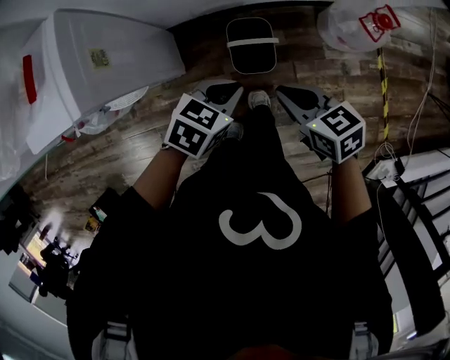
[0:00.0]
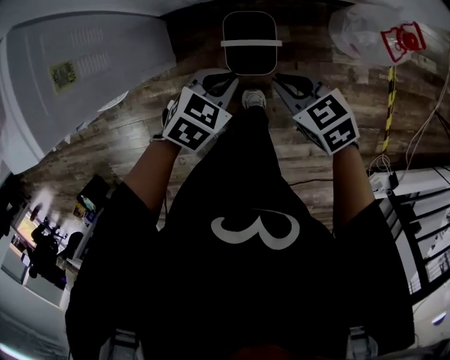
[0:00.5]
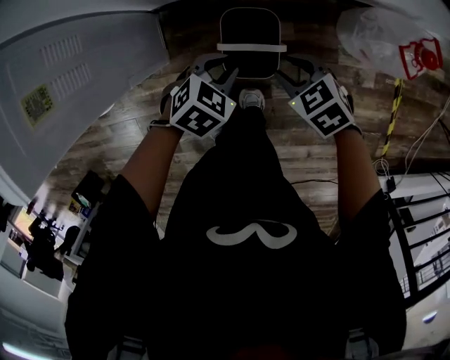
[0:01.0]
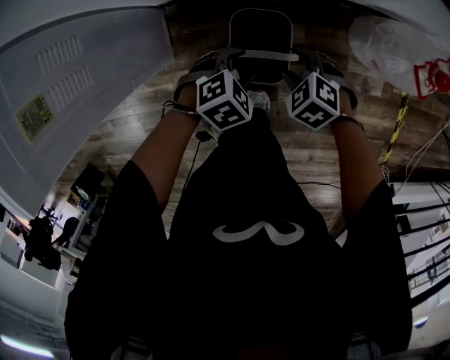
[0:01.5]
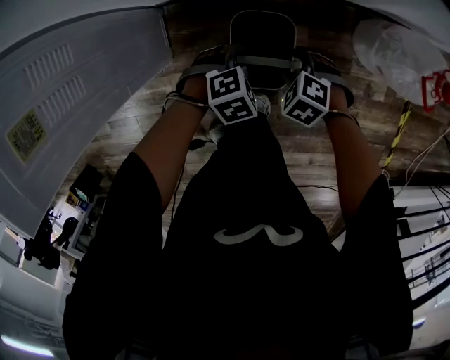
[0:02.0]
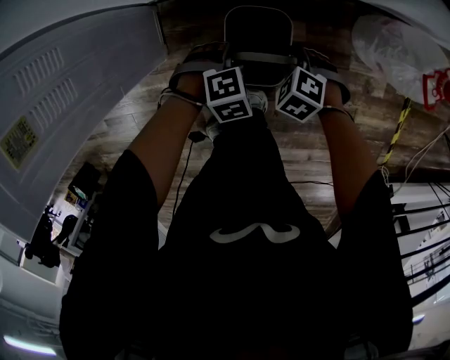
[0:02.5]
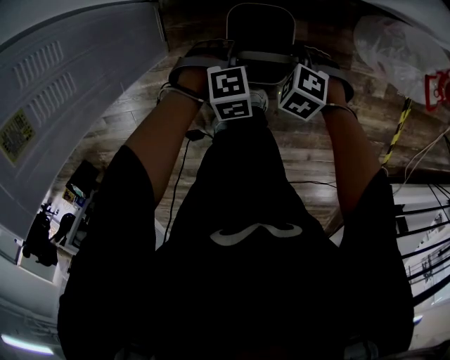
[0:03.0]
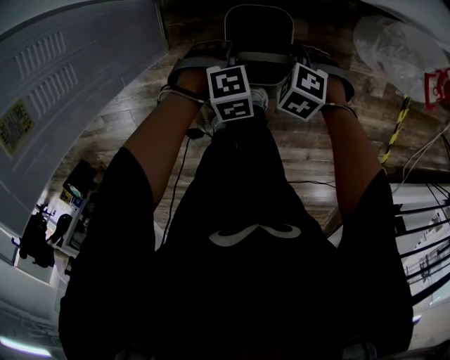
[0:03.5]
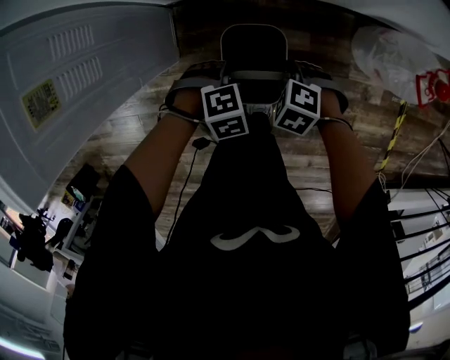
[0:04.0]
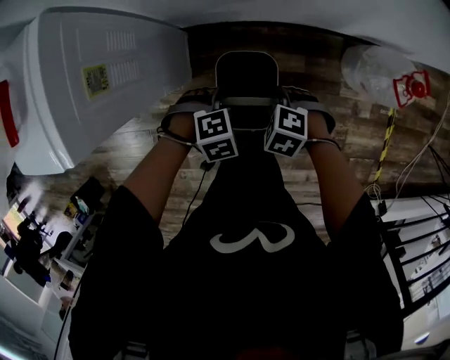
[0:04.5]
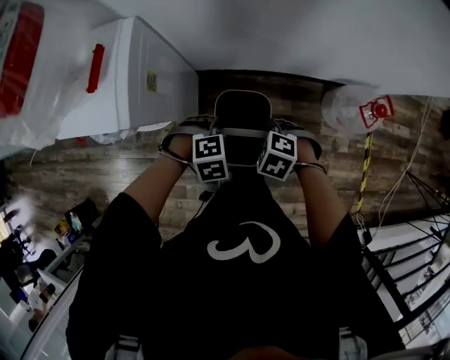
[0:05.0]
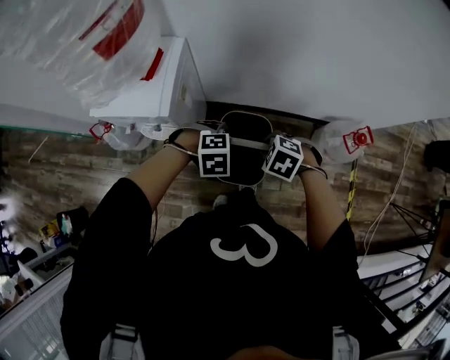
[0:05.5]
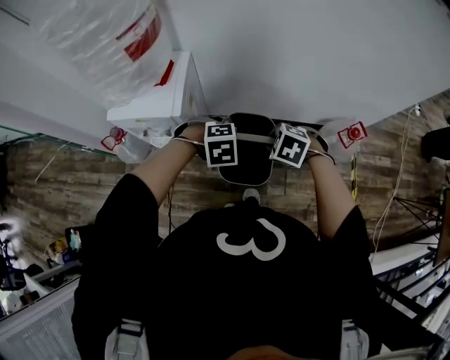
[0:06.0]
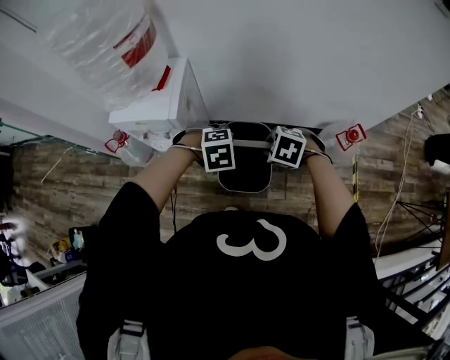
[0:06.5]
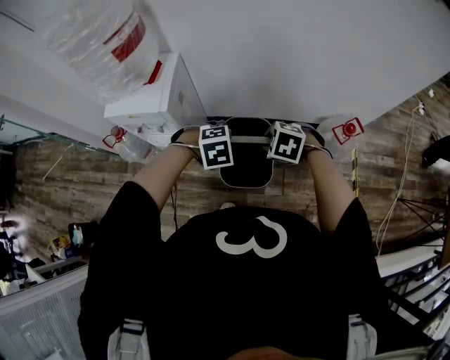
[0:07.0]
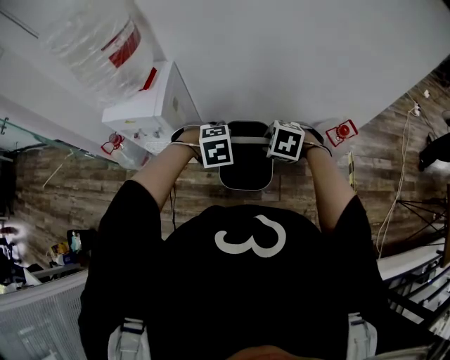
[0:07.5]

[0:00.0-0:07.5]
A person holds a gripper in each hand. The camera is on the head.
0:00.0 to 0:02.0: The two grippers go about 35 cm downward. The left gripper swivels approximately 40 degrees, and opens up. Meanwhile the right gripper angles its fingers downward, by about 40 degrees, and opens.
0:02.0 to 0:04.0: The right gripper changes place by roughly 10 cm, and closes. The left gripper moves about 10 cm, and closes up.
0:04.0 to 0:05.5: Both grippers travel together upward, about 40 cm.
0:05.5 to 0:07.5: The right gripper is displaced upward, backward and to the right by some 15 cm; the left gripper is displaced backward, upward and to the right by about 15 cm.

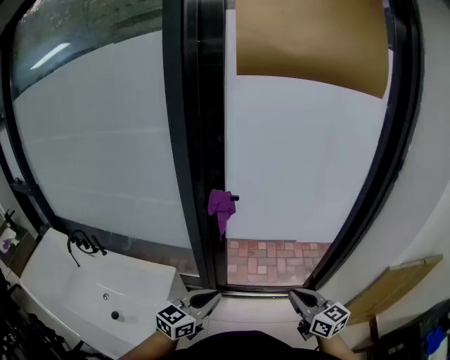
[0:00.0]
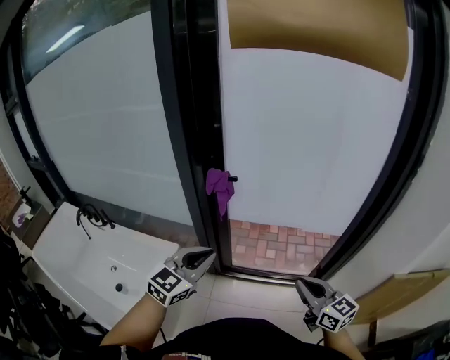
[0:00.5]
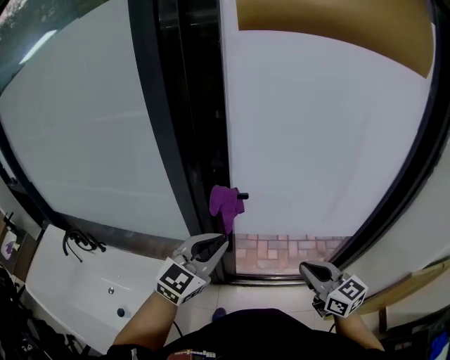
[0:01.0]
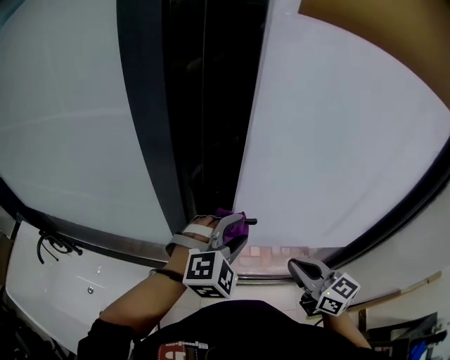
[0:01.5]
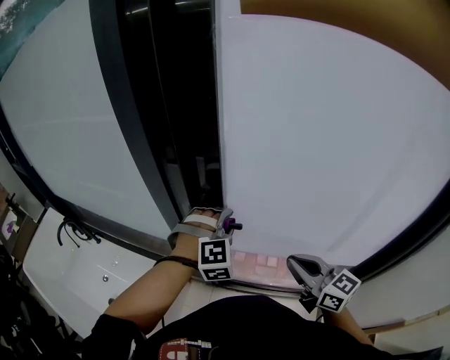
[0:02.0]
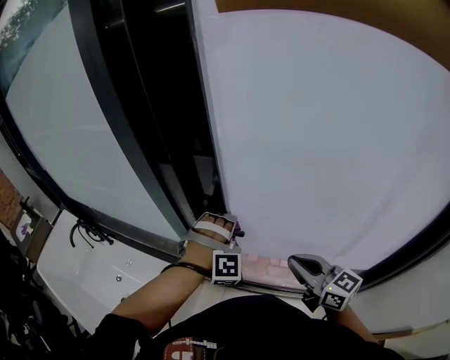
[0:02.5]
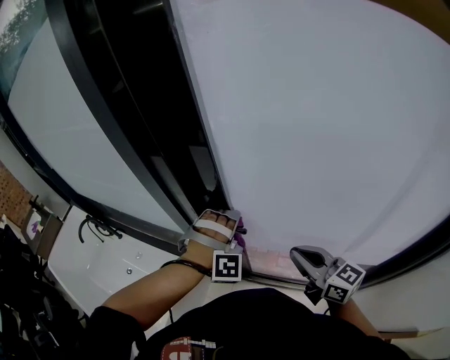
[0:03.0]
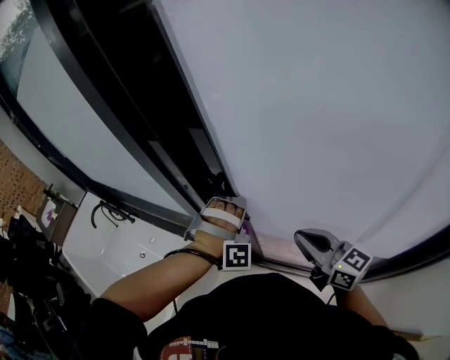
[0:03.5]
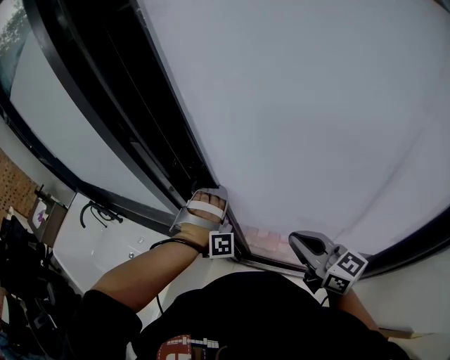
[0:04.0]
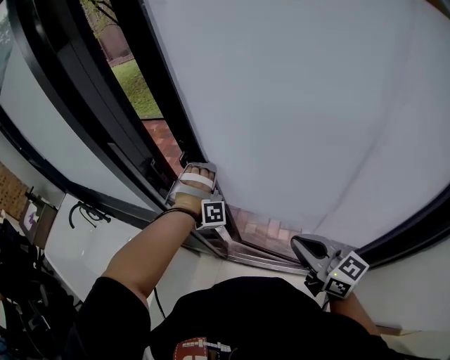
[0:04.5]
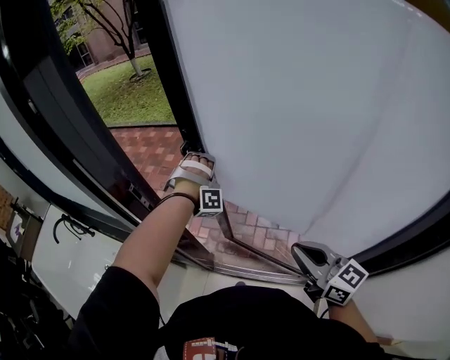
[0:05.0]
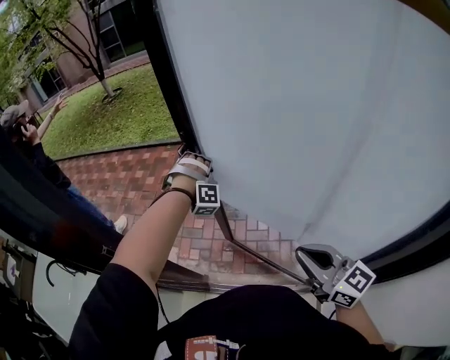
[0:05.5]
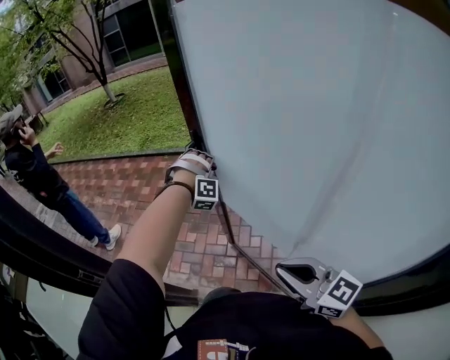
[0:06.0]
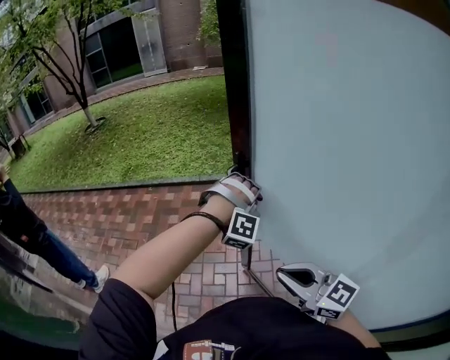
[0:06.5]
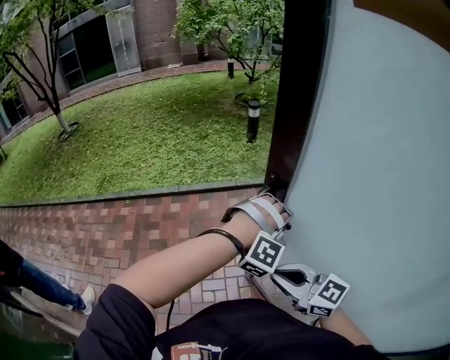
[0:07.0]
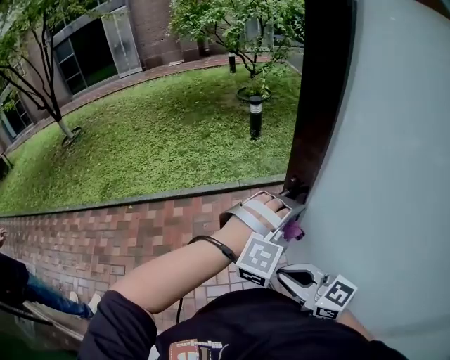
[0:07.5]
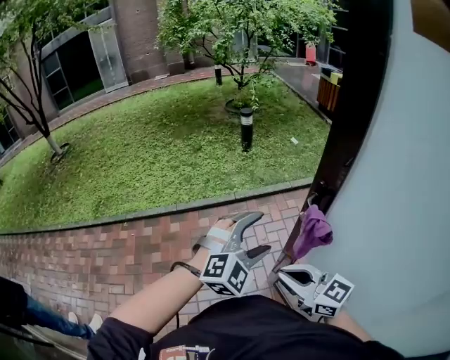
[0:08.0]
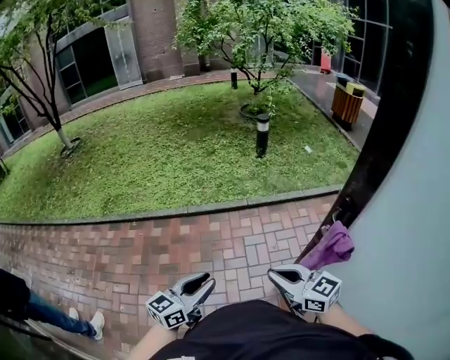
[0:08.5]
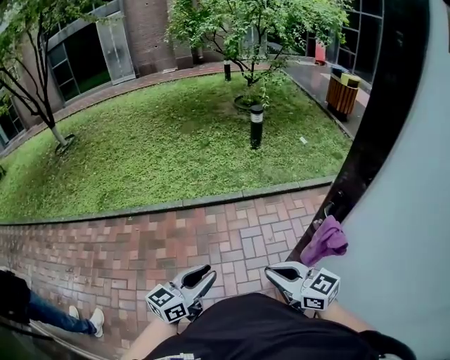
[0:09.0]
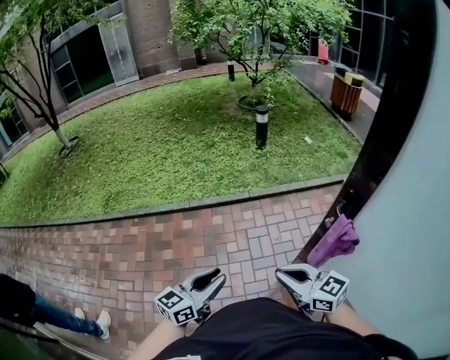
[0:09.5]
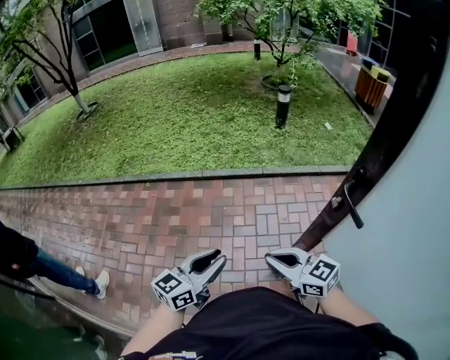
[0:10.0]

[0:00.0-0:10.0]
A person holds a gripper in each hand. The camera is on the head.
0:00.0 to 0:02.0: The left gripper goes upward and returns, approximately 10 cm each way, changes its angle by some 90 degrees, and opens its fingers, while the right gripper shifts by some 35 cm.
0:02.0 to 0:04.0: The left gripper is displaced downward by about 5 cm, and swivels some 50 degrees. The right gripper changes place by some 5 cm.
0:04.0 to 0:06.0: The left gripper shifts about 50 cm to the right and forward. The right gripper is displaced to the right by roughly 20 cm.
0:06.0 to 0:08.0: The left gripper ends up some 25 cm from where it was, changes its angle by approximately 70 degrees, and opens, while the right gripper changes place by about 50 cm.
0:08.0 to 0:10.0: The left gripper heads to the left, covering roughly 20 cm, twists some 70 degrees counterclockwise, seen from behind, and closes its fingers, while the right gripper travels to the left and downward by some 10 cm.

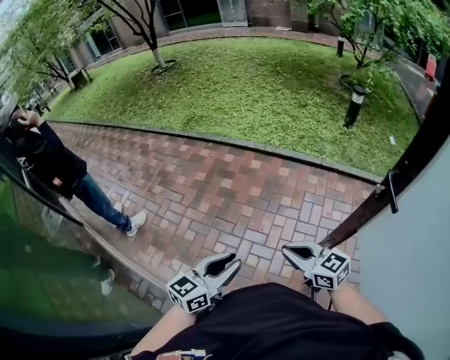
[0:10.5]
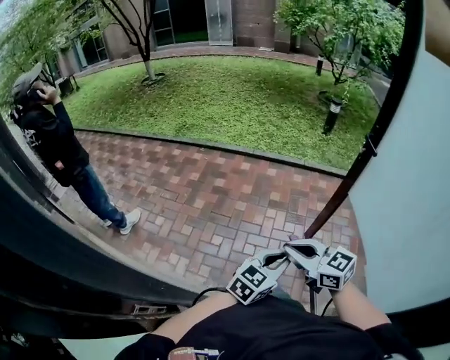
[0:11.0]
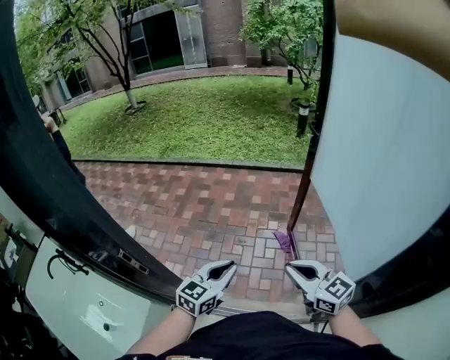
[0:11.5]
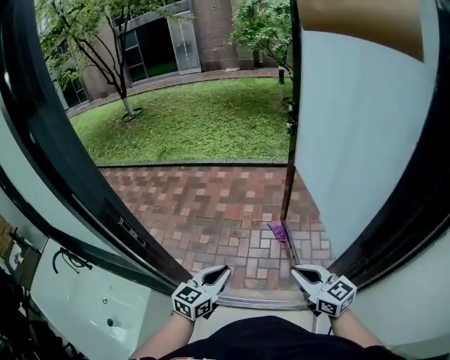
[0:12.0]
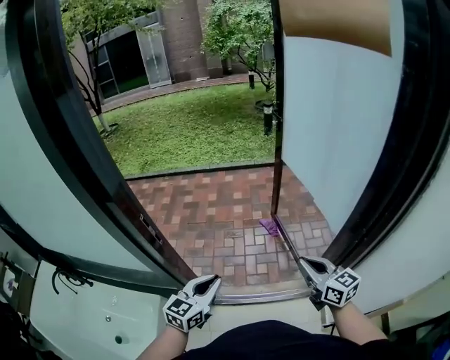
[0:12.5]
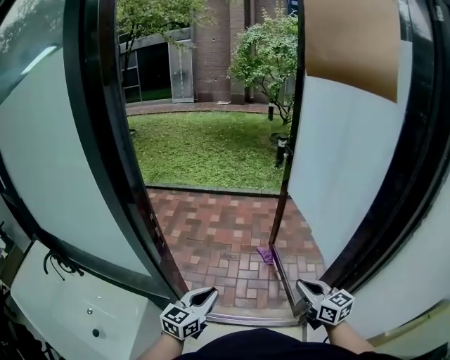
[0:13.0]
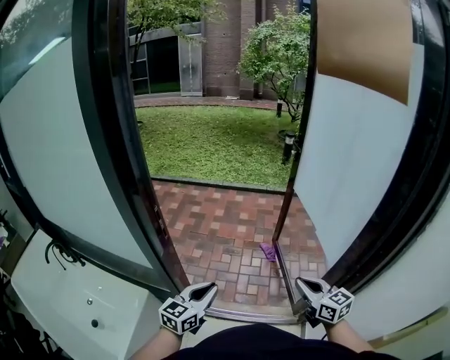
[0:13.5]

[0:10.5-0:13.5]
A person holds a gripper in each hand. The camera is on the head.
0:10.5 to 0:12.0: The pair of grippers is taken backward, approximately 50 cm. The right gripper rotates approximately 30 degrees.
0:12.0 to 0:13.5: The right gripper heads backward, covering approximately 5 cm, while the left gripper shifts roughly 15 cm backward and to the left.

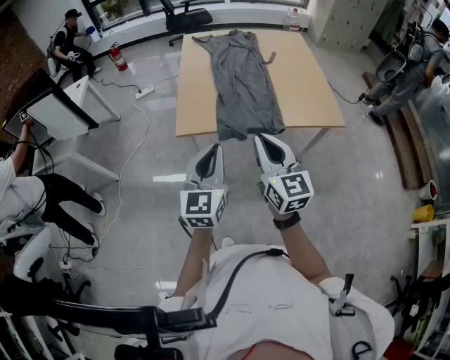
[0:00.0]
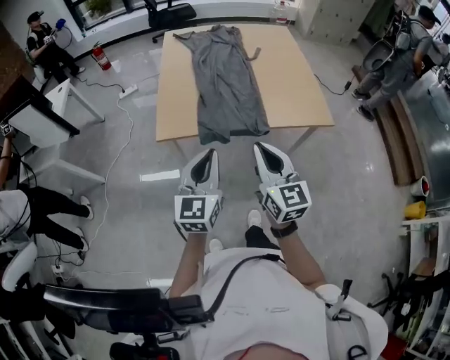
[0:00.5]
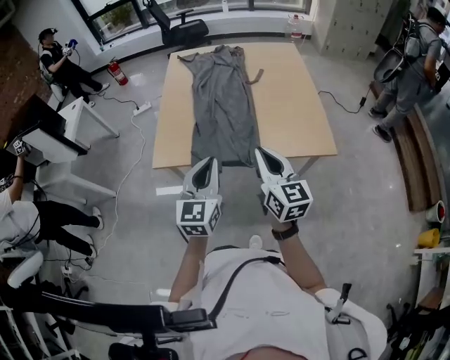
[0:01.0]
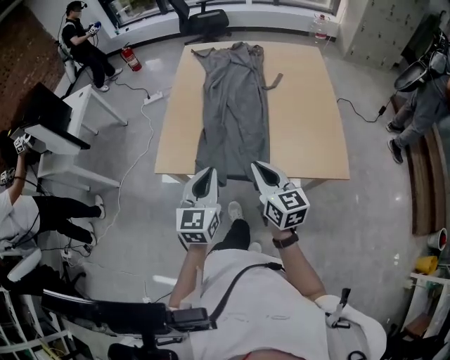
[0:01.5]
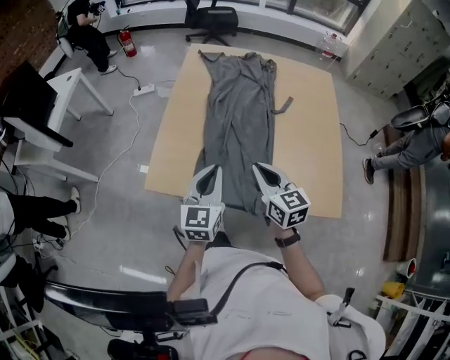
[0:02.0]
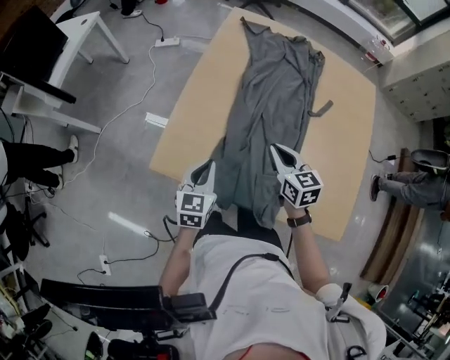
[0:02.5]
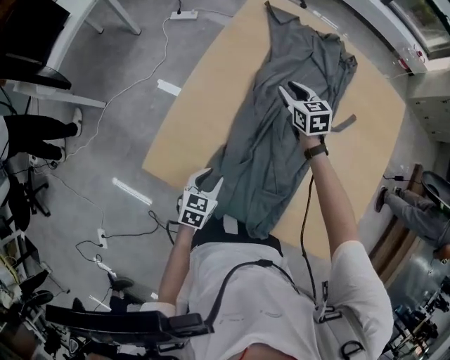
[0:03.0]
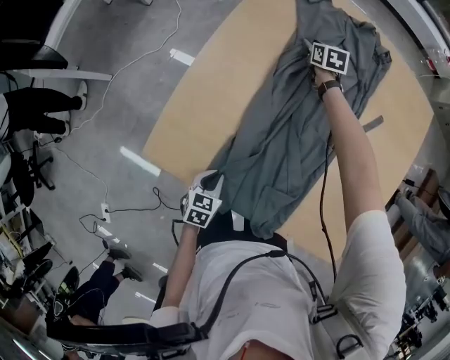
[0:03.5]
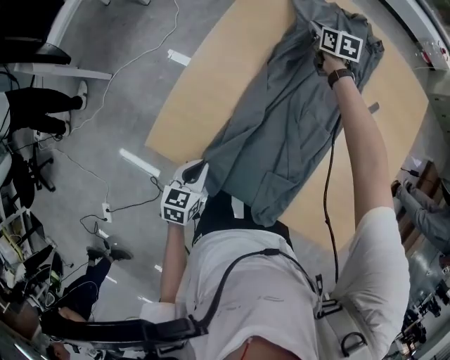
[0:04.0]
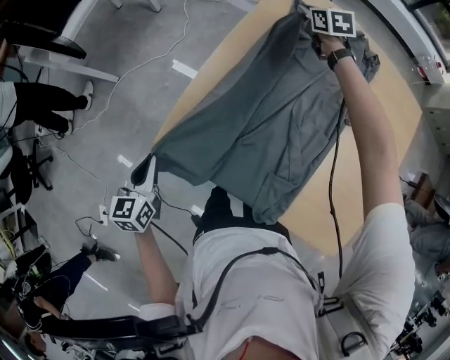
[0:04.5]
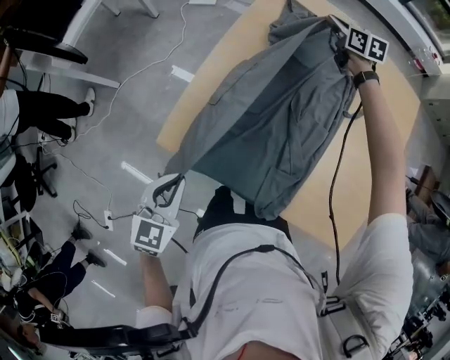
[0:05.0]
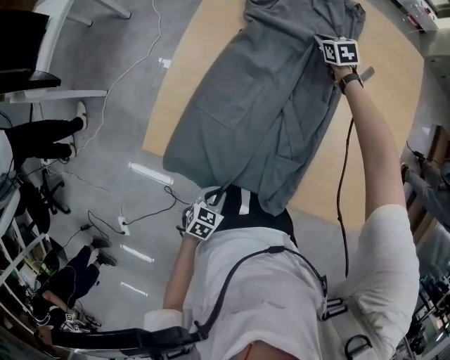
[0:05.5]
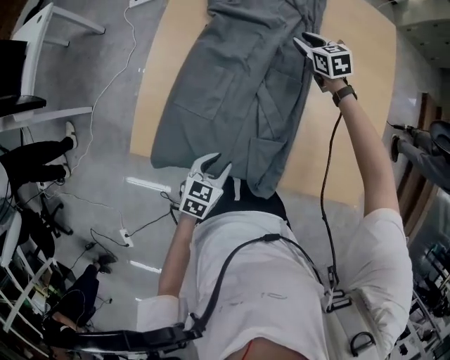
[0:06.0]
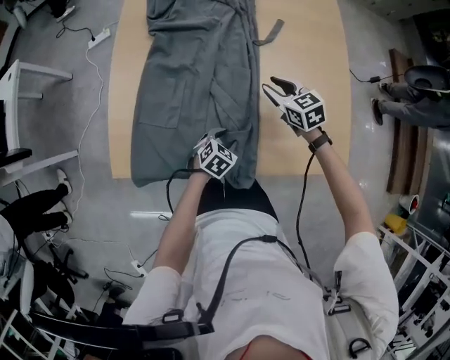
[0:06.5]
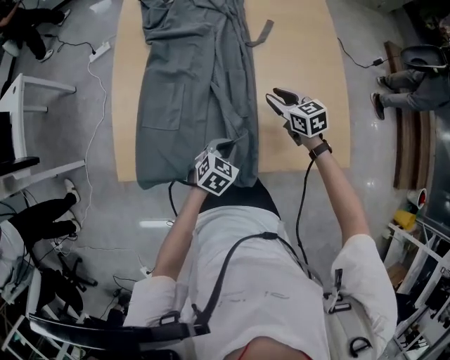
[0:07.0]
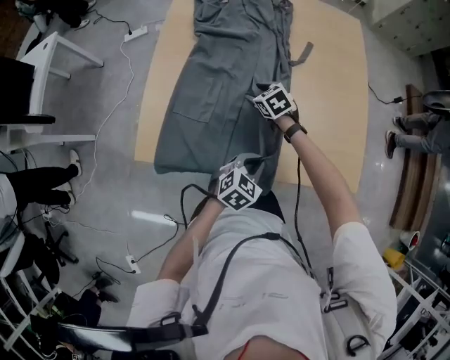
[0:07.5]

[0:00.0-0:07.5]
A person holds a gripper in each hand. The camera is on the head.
0:00.0 to 0:02.0: The right gripper moves forward, about 30 cm, and changes its angle by roughly 30 degrees; the left gripper heads forward and to the right, covering about 30 cm.
0:02.0 to 0:04.0: The left gripper shifts roughly 25 cm downward, angles its fingers downward, by about 40 degrees, and opens and closes again; the right gripper travels forward and downward by approximately 60 cm, and changes its angle by roughly 20 degrees.
0:04.0 to 0:05.5: The left gripper reaches roughly 15 cm upward, then returns, and swivels roughly 30 degrees. Meanwhile the right gripper travels upward and back again, roughly 15 cm each way.
0:05.5 to 0:07.5: The right gripper is displaced backward by about 30 cm, and opens. Meanwhile the left gripper is displaced to the right, forward and upward by some 20 cm, turns by approximately 30 degrees, and opens, then closes again.
